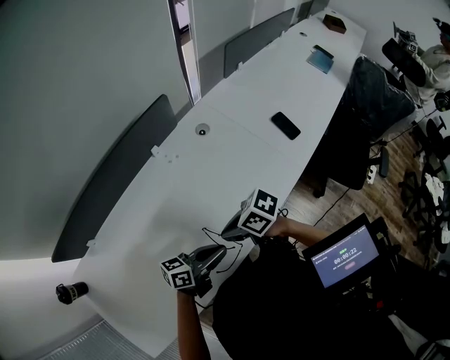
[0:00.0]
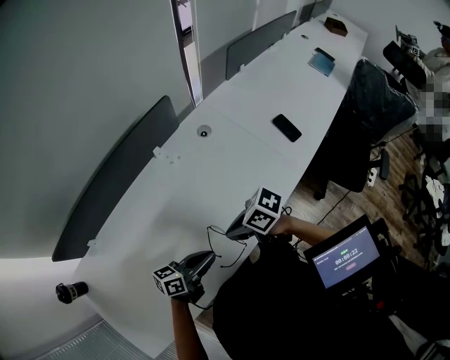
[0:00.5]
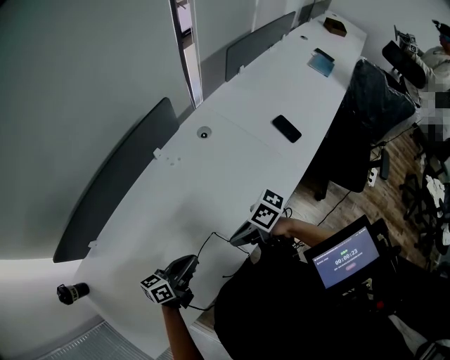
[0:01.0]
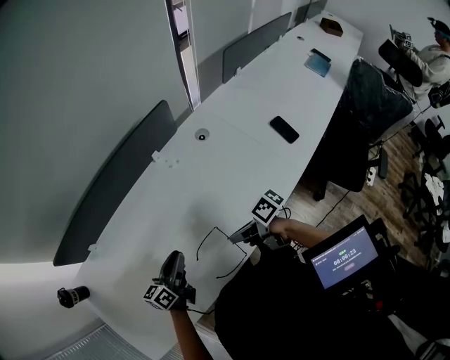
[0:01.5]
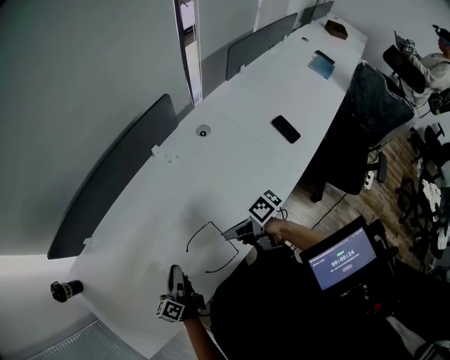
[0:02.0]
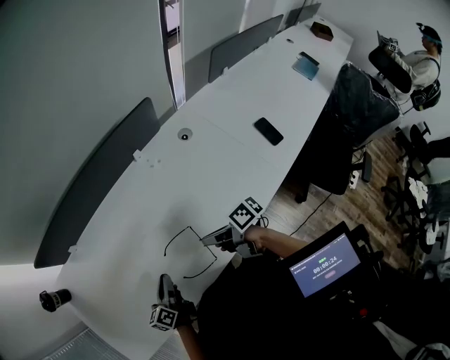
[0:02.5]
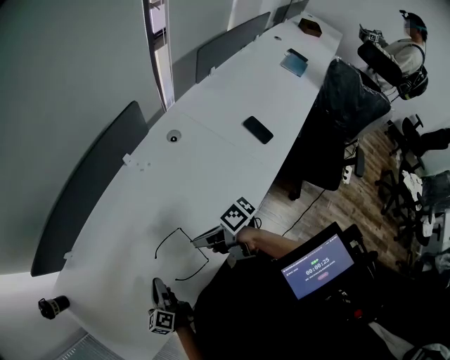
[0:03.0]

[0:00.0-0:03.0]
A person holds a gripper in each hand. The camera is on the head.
0:00.0 to 0:01.5: The left gripper moves some 15 cm, and turns by about 40 degrees.
0:01.5 to 0:03.0: The left gripper changes place by roughly 10 cm, and turns by approximately 30 degrees.

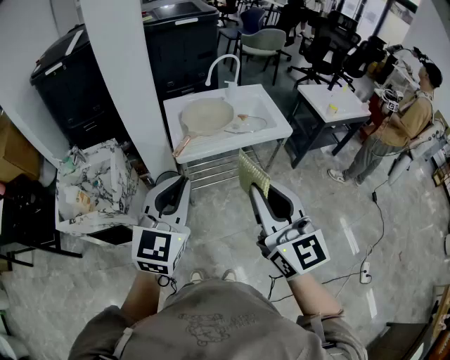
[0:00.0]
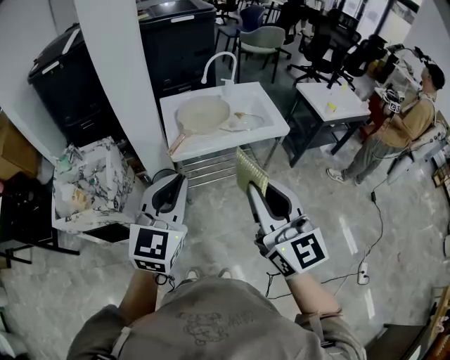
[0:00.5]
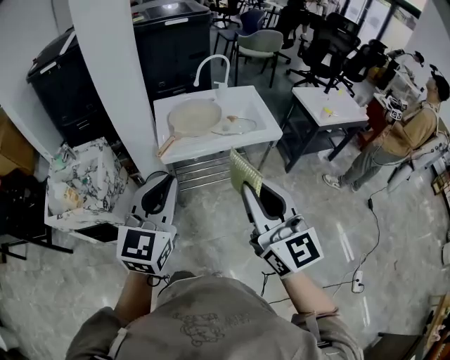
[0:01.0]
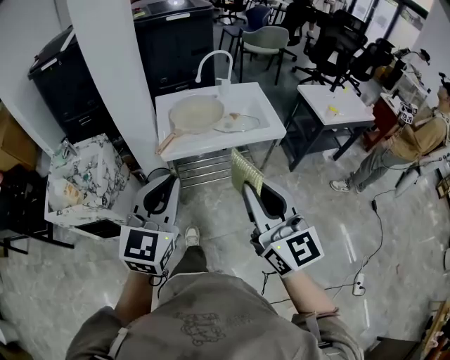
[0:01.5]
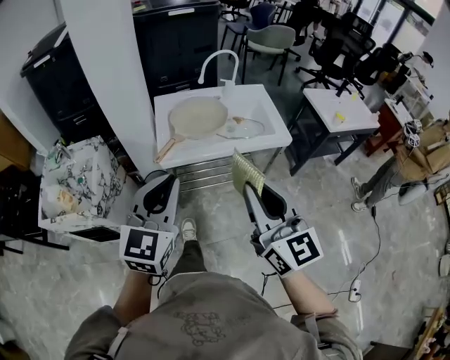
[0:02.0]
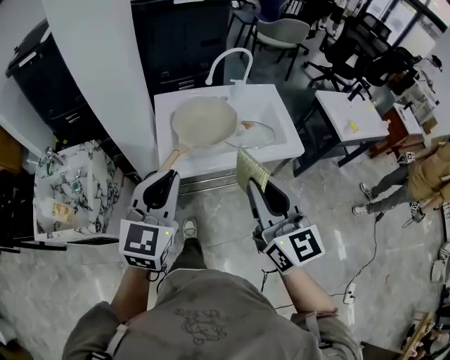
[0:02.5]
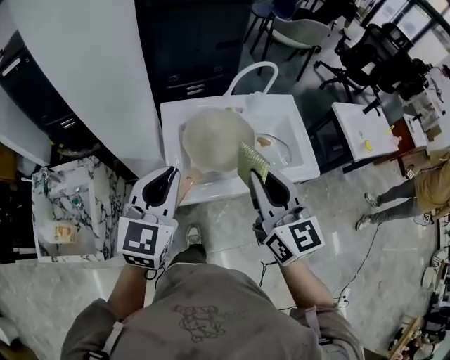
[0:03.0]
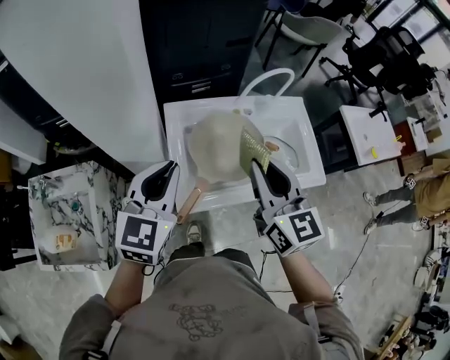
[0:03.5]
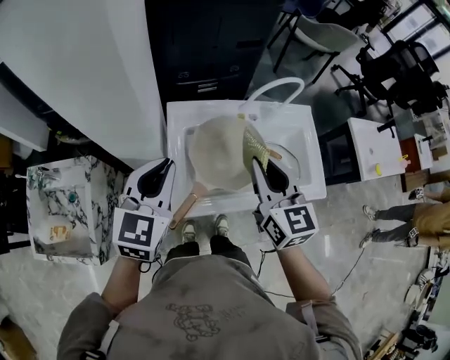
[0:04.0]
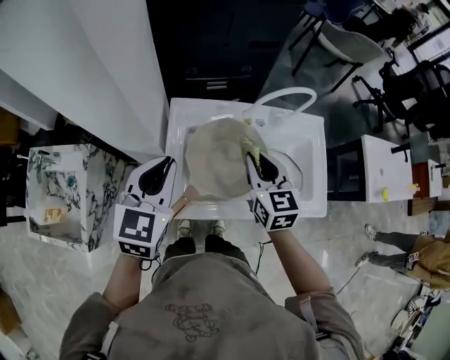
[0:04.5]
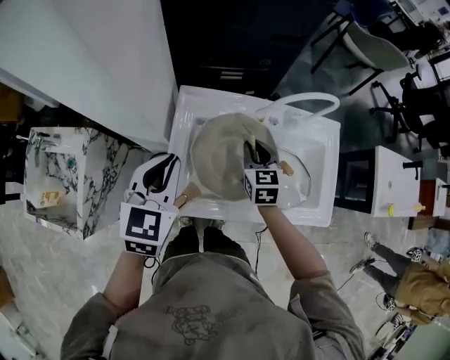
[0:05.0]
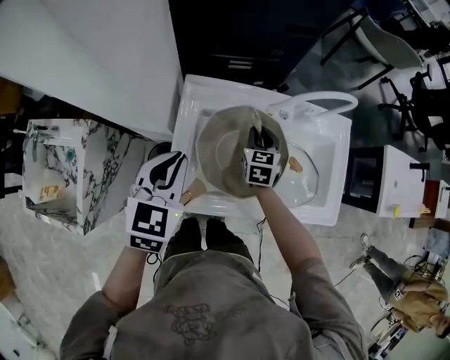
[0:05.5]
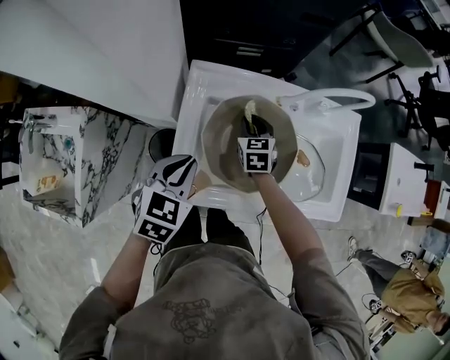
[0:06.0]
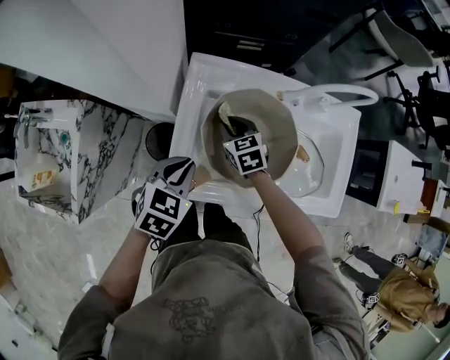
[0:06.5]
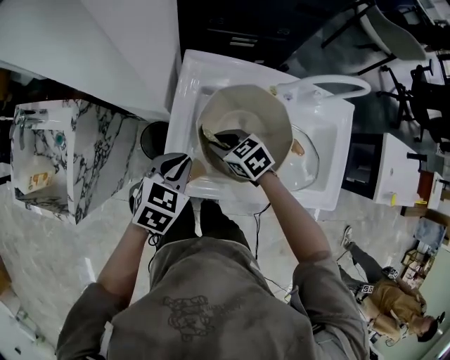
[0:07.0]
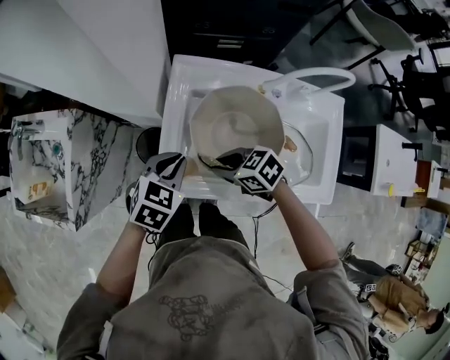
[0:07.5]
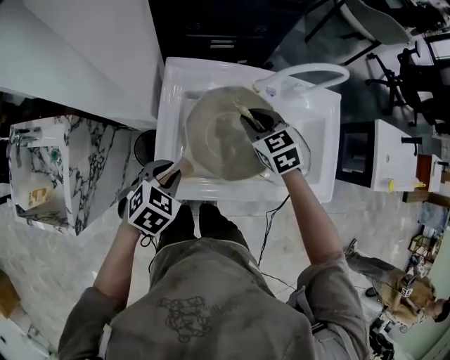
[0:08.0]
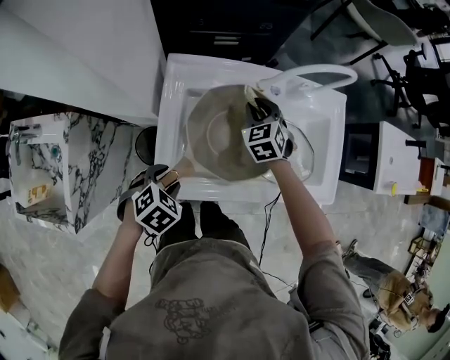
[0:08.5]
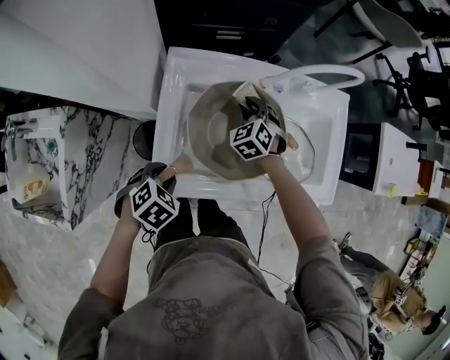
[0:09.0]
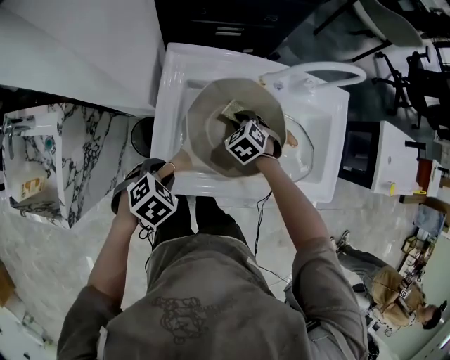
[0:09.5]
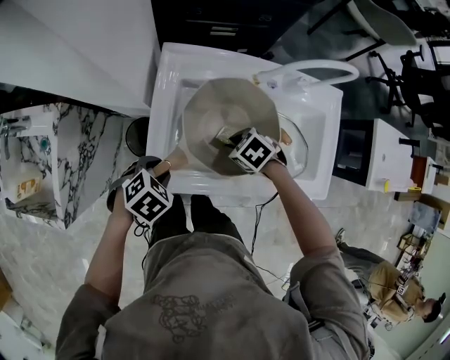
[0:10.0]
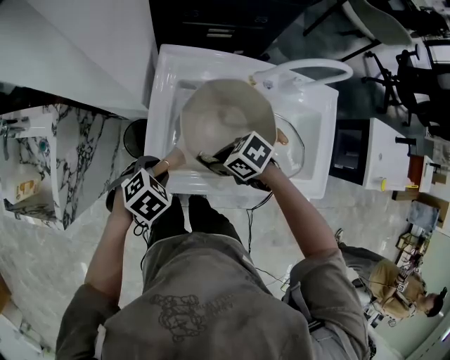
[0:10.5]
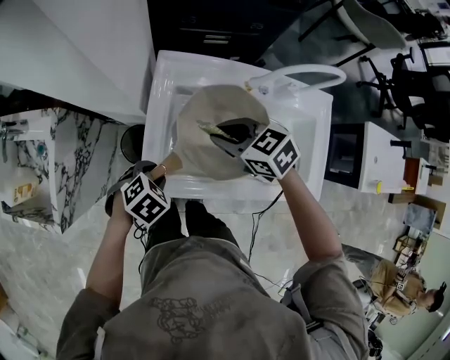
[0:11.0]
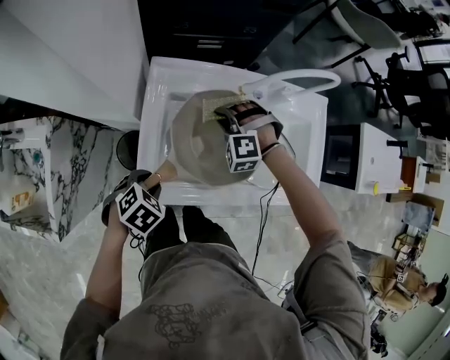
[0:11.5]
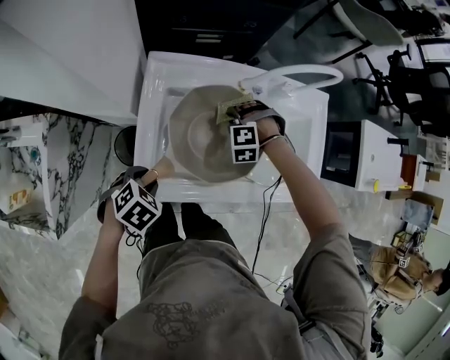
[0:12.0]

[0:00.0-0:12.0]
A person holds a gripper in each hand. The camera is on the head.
0:00.0 to 0:02.0: The right gripper goes roughly 15 cm forward, to the right and downward, while the left gripper is displaced forward and to the right by roughly 10 cm.
0:02.0 to 0:04.0: Both grippers move forward, approximately 40 cm.
0:04.0 to 0:06.0: The left gripper is displaced downward by about 20 cm, and rotates roughly 30 degrees; the right gripper heads downward and forward, covering some 35 cm, and rotates approximately 30 degrees.
0:06.0 to 0:08.0: The right gripper goes about 10 cm upward, and turns by roughly 20 degrees, while the left gripper is displaced downward by some 5 cm, and rotates some 20 degrees.
0:08.0 to 0:10.0: The right gripper goes roughly 10 cm downward, and rotates about 40 degrees. The left gripper travels downward by roughly 5 cm, and opens up.
0:10.0 to 0:12.0: The right gripper moves roughly 15 cm upward and comes back, and twists approximately 60 degrees counterclockwise, seen from behind.

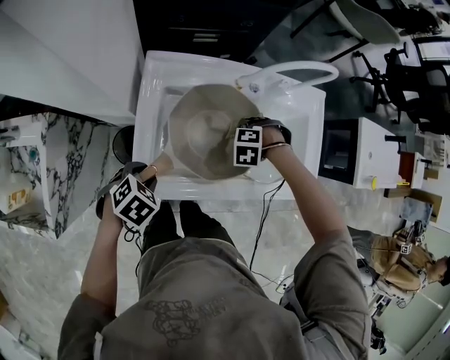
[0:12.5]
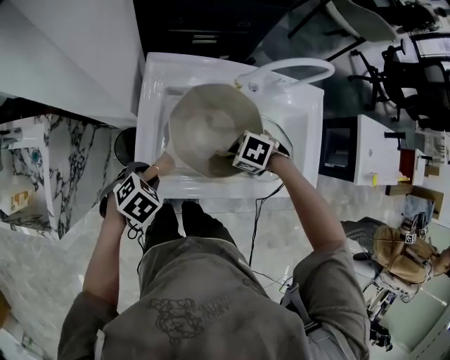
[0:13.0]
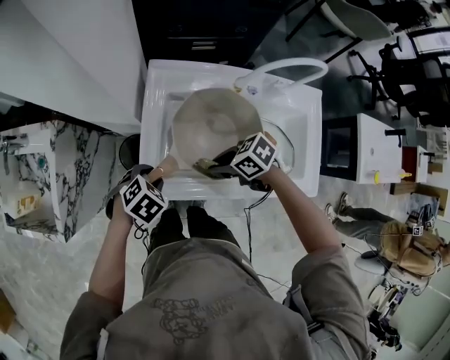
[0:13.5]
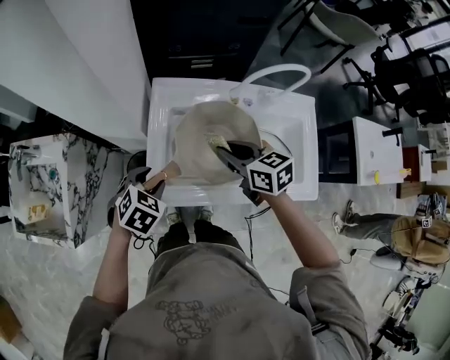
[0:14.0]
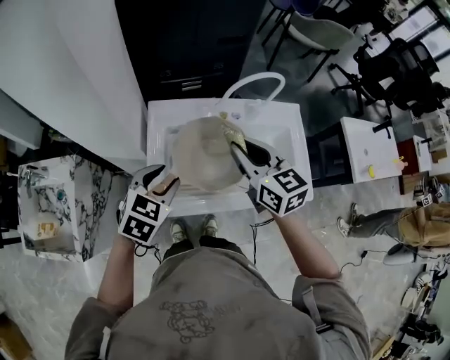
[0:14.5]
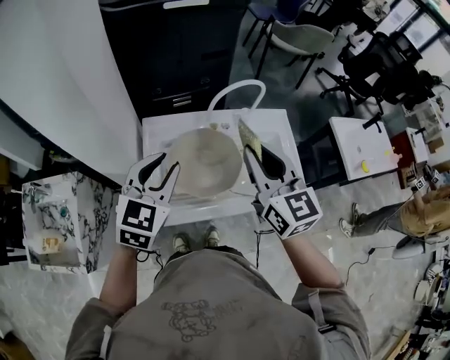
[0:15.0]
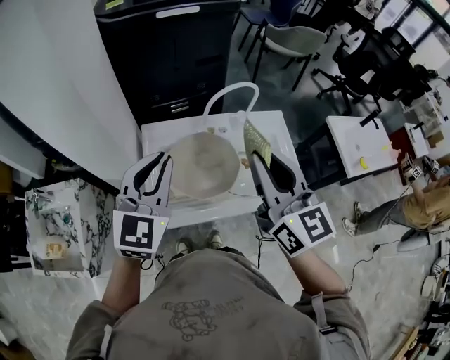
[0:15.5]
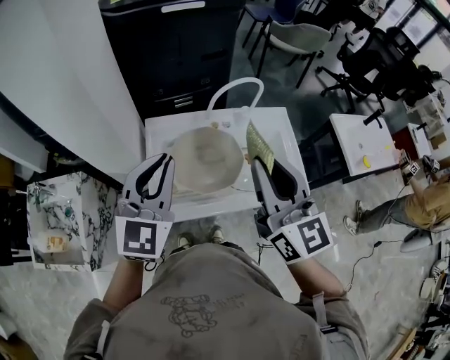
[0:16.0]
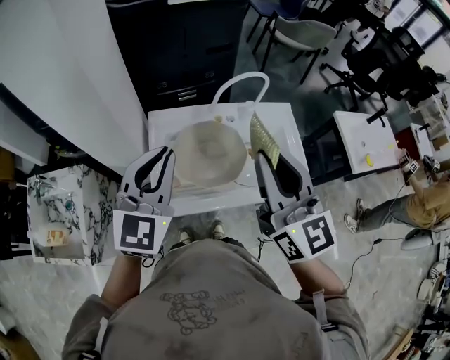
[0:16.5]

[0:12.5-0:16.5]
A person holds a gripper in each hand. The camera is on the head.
0:12.5 to 0:14.5: The right gripper travels upward by approximately 30 cm, and points its fingers roughly 60 degrees further upward. Meanwhile the left gripper heads upward, covering approximately 20 cm, and points its fingers approximately 30 degrees further upward.
0:14.5 to 0:16.5: The right gripper travels upward and backward by roughly 20 cm, and changes its angle by roughly 30 degrees; the left gripper shifts roughly 20 cm upward, tilts its fingers some 40 degrees upward, and closes up.

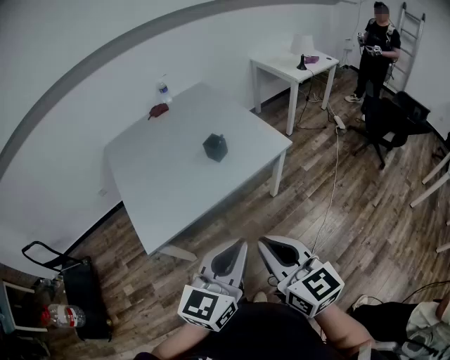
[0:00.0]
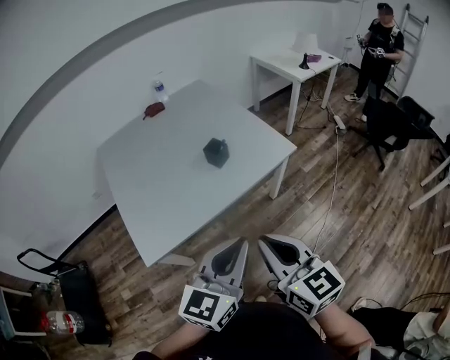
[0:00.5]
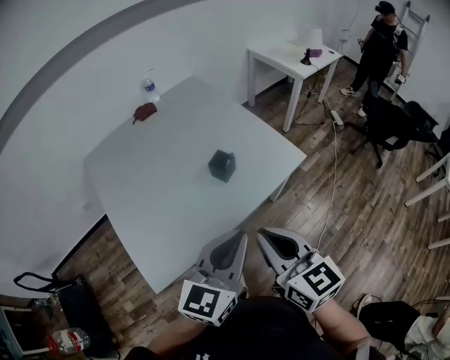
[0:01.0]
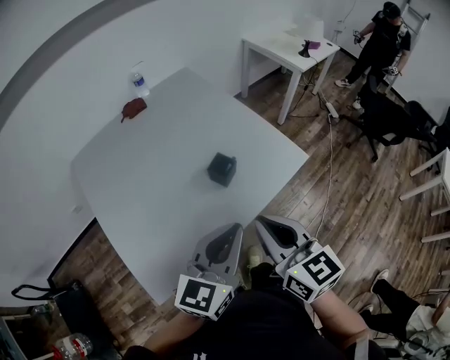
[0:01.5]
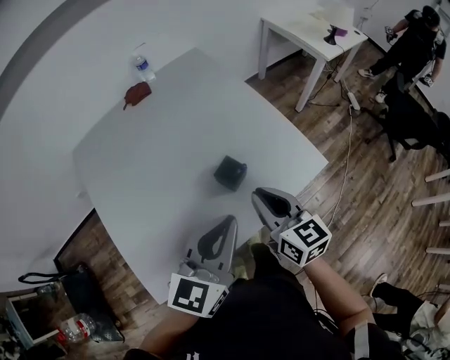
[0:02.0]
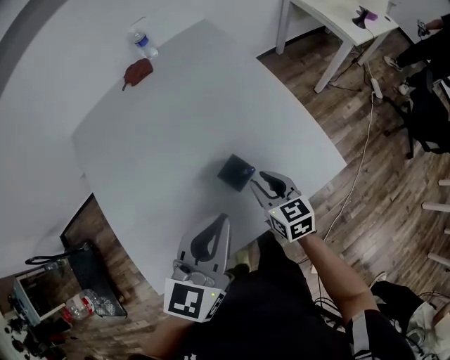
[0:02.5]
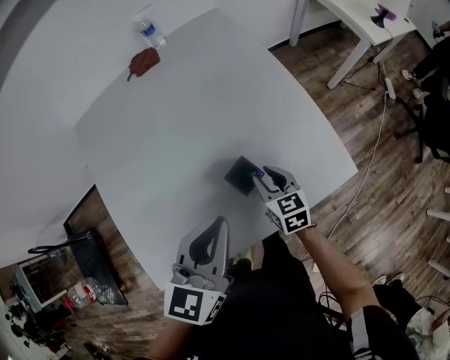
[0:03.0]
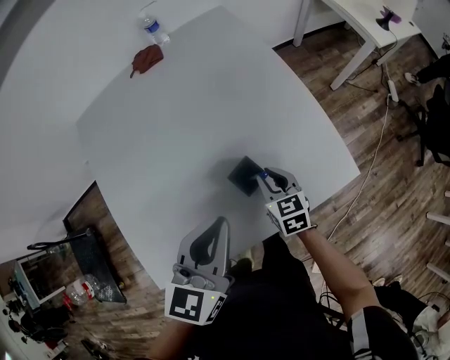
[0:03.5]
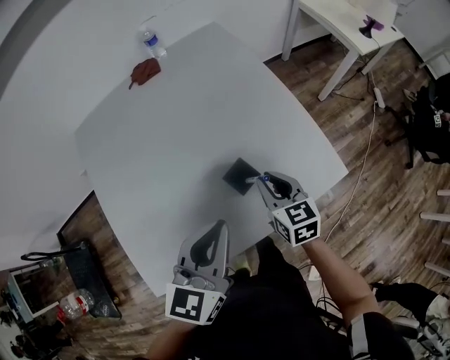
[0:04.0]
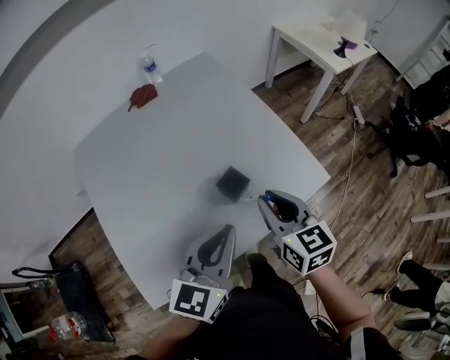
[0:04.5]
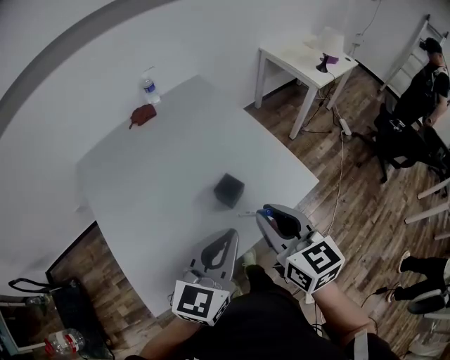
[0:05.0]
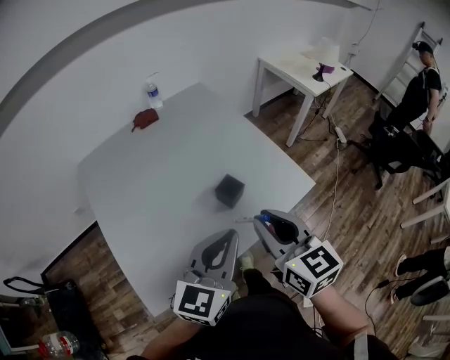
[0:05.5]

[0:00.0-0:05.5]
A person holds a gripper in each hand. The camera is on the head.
0:00.0 to 0:02.0: Both grippers move forward, about 40 cm.
0:02.0 to 0:03.5: The right gripper travels downward and forward by roughly 20 cm, and swivels roughly 20 degrees. Meanwhile the left gripper shifts some 10 cm forward and downward.
0:03.5 to 0:05.5: The left gripper shifts approximately 15 cm backward and upward, while the right gripper heads upward and backward, covering some 35 cm, and turns by roughly 20 degrees.

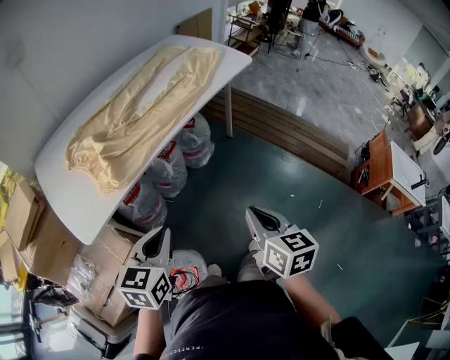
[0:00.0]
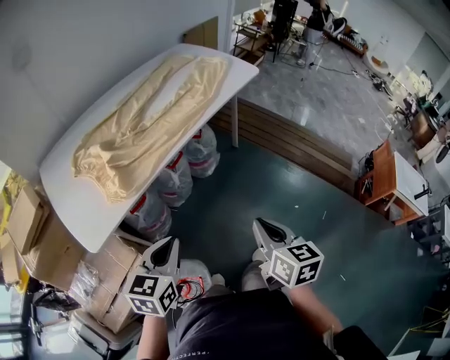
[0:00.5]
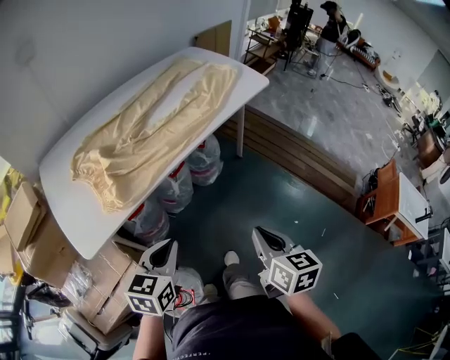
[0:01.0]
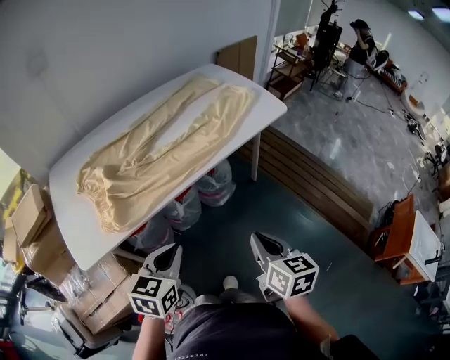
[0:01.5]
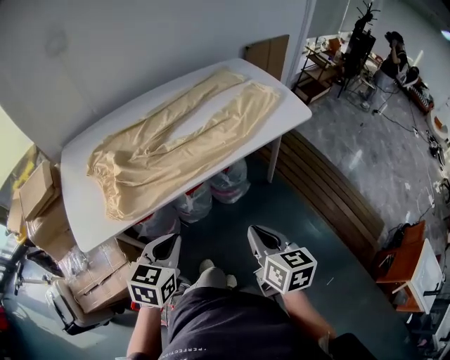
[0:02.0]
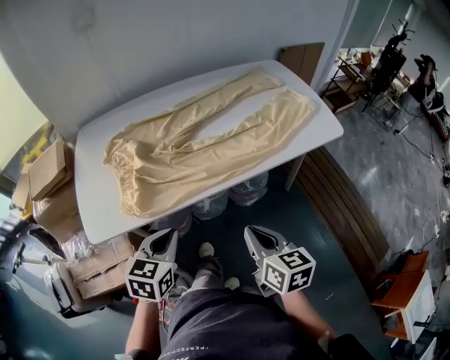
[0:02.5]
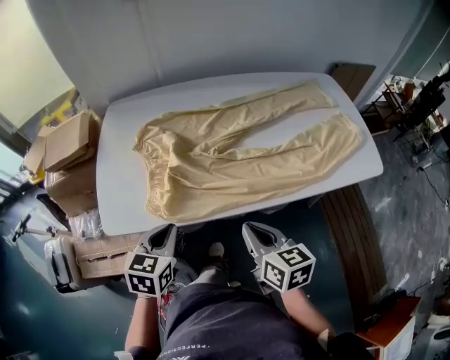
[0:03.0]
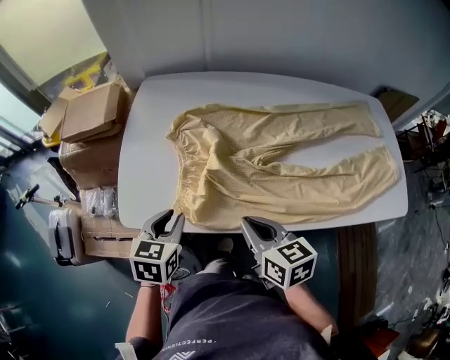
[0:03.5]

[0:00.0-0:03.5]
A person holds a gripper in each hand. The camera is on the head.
0:00.0 to 0:02.0: The left gripper shifts some 15 cm forward and to the right. The right gripper travels forward by approximately 20 cm, and changes its angle by about 20 degrees.
0:02.0 to 0:03.5: The left gripper moves about 30 cm, swivels roughly 40 degrees, and opens, while the right gripper changes place by about 35 cm, and swivels about 40 degrees.
